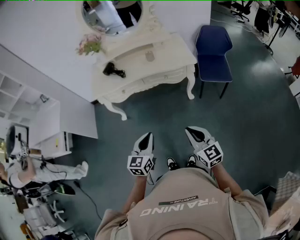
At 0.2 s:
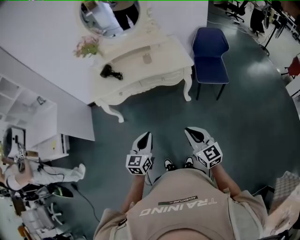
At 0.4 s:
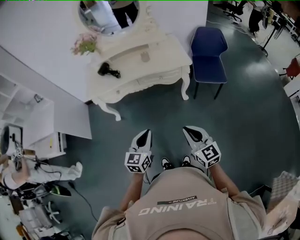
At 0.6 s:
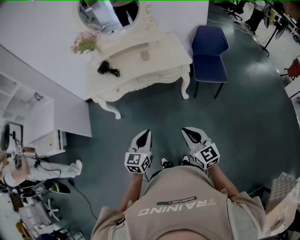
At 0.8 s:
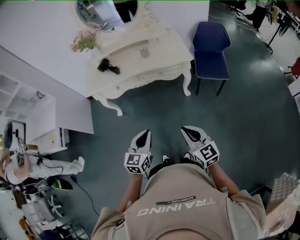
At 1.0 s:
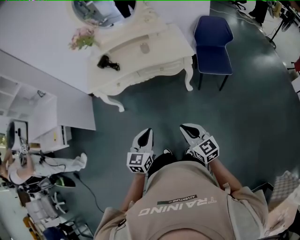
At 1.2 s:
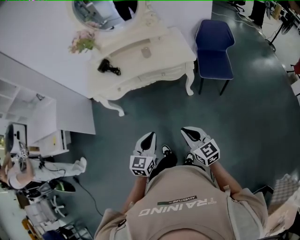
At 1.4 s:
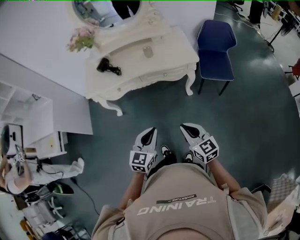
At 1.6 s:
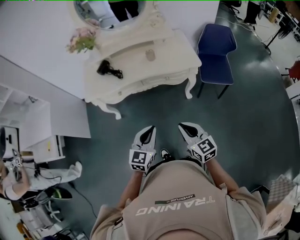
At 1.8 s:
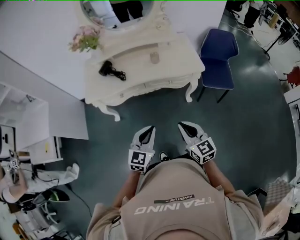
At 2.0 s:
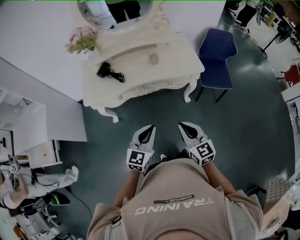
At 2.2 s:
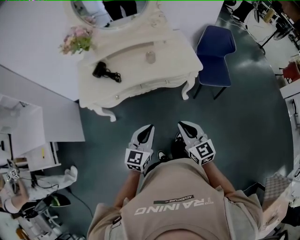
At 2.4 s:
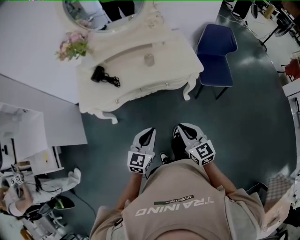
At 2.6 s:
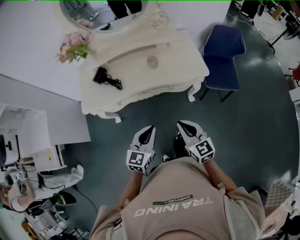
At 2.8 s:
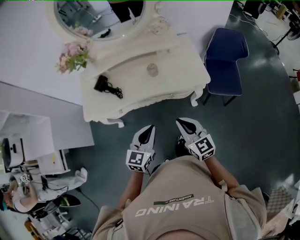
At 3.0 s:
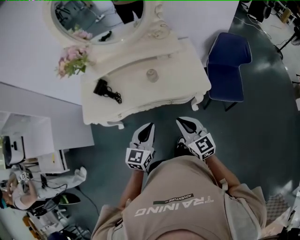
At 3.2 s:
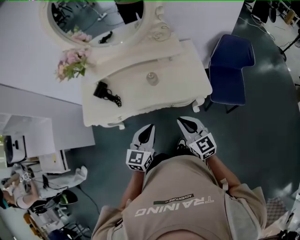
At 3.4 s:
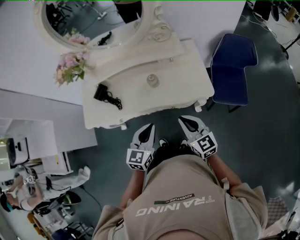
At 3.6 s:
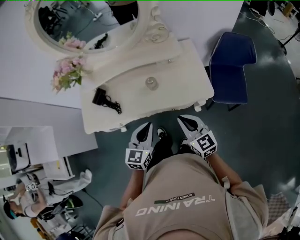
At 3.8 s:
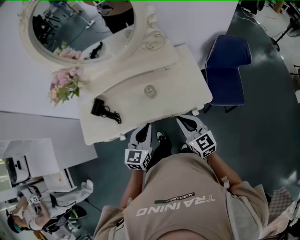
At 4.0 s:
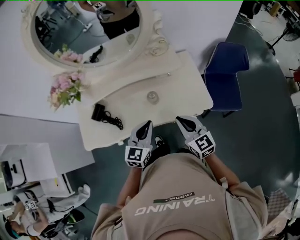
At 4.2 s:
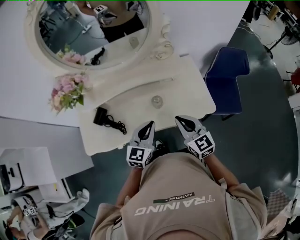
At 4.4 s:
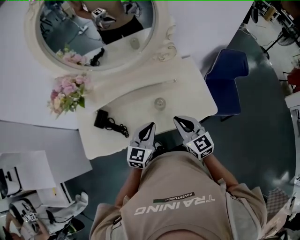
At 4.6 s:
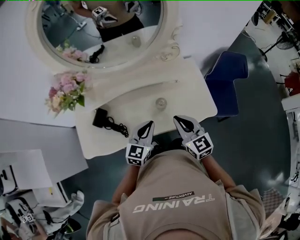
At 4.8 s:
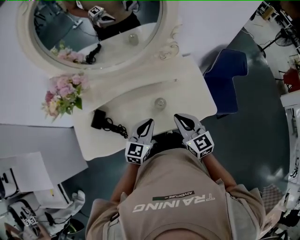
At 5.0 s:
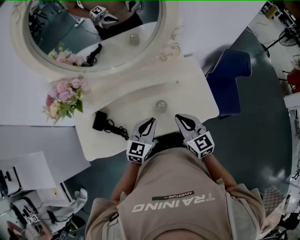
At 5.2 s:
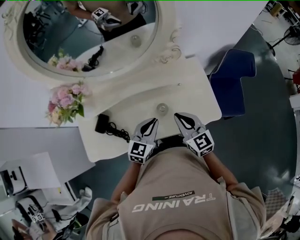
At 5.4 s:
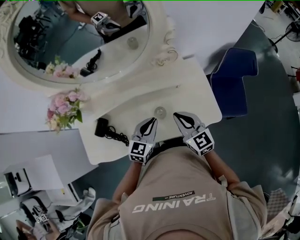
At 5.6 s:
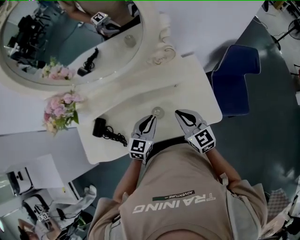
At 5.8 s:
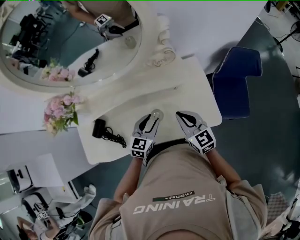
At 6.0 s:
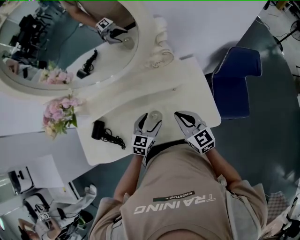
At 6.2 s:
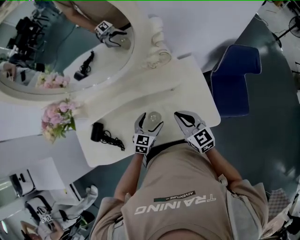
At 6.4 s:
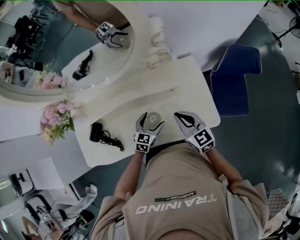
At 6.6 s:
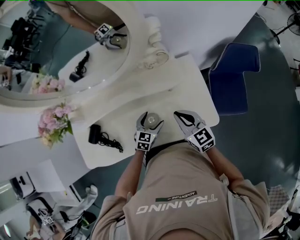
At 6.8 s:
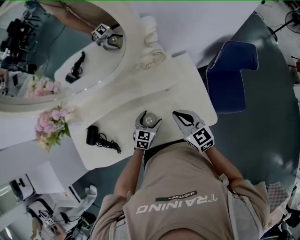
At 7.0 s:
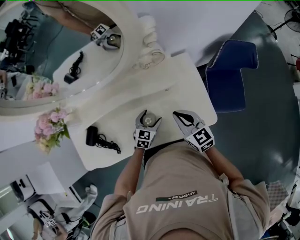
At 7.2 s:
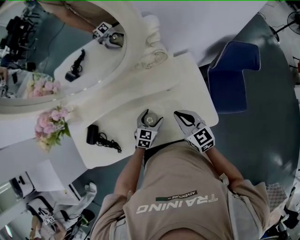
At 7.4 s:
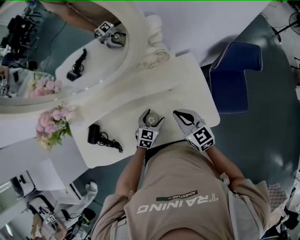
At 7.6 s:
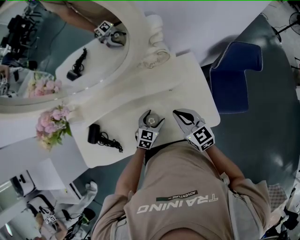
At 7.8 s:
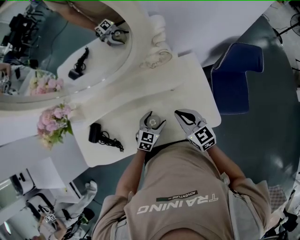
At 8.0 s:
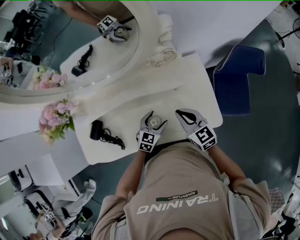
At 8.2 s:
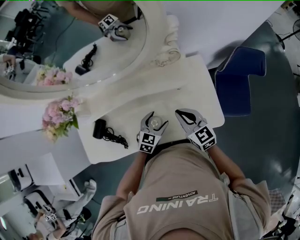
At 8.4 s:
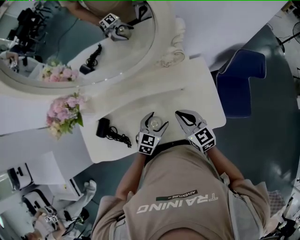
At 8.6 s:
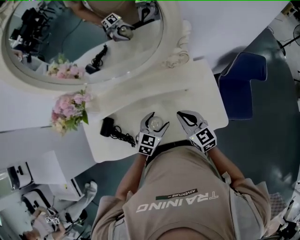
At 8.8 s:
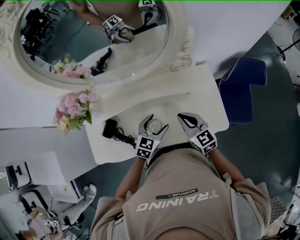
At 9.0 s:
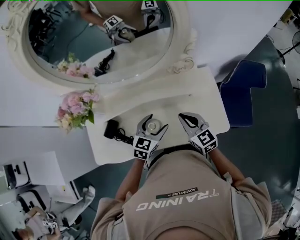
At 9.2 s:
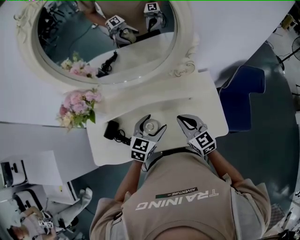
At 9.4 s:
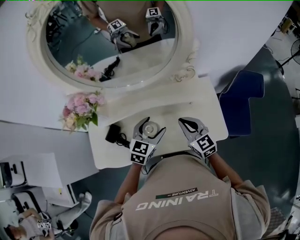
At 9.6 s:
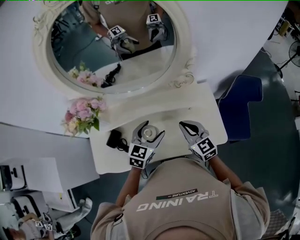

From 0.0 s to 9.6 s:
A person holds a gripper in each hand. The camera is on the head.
From 0.0 s to 1.6 s: Both grippers move forward, about 10 cm.
From 1.6 s to 3.2 s: The two grippers go some 25 cm forward.
From 3.2 s to 4.8 s: The left gripper shifts some 20 cm forward; the right gripper goes roughly 20 cm forward and to the left.
From 4.8 s to 6.4 s: The right gripper is displaced forward, to the right and downward by approximately 15 cm, while the left gripper is displaced downward, forward and to the right by some 20 cm, and opens up.
From 6.4 s to 8.0 s: There are only small adjustments of the grippers.
From 8.0 s to 9.6 s: The left gripper goes some 25 cm upward and to the left, while the right gripper moves upward and to the left, roughly 10 cm.

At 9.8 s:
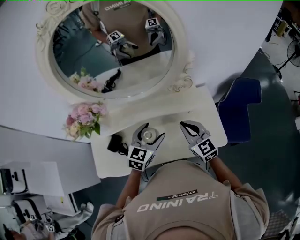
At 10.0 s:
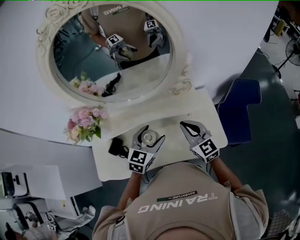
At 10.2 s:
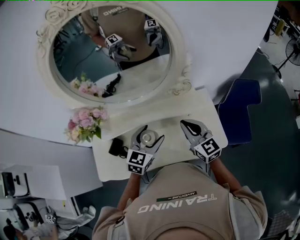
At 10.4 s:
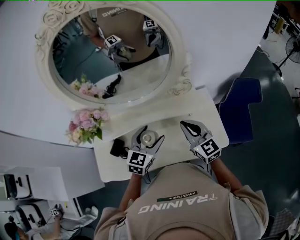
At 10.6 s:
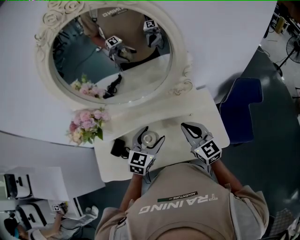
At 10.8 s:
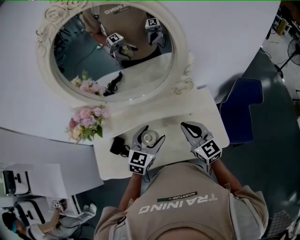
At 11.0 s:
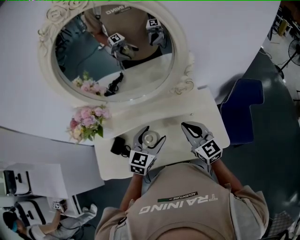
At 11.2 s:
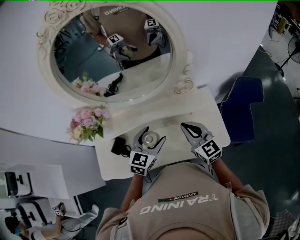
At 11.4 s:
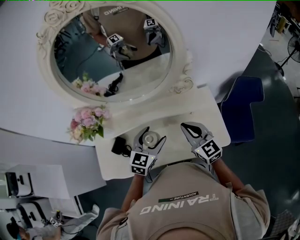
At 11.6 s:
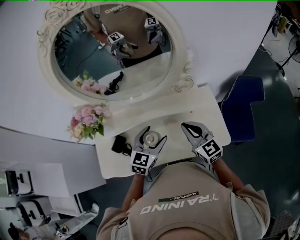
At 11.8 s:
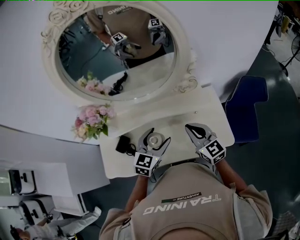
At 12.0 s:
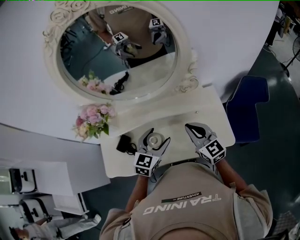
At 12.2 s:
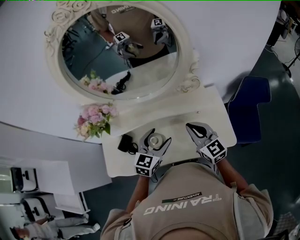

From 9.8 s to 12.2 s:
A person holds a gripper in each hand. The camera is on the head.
From 9.8 s to 12.2 s: The grippers stay close to where they were, moving slightly.

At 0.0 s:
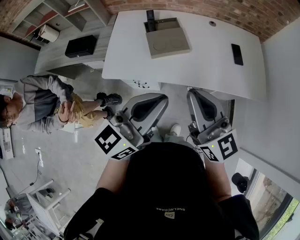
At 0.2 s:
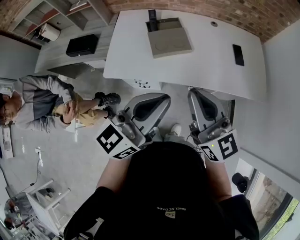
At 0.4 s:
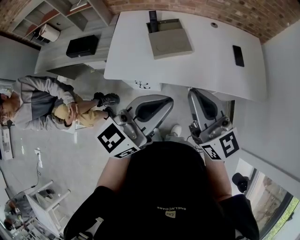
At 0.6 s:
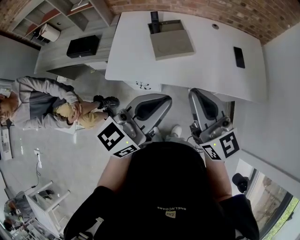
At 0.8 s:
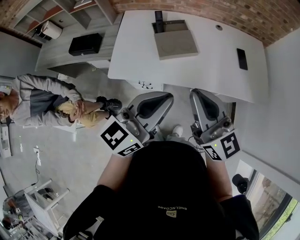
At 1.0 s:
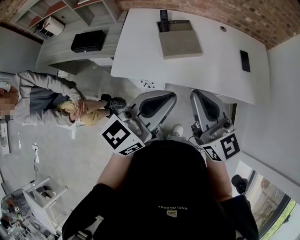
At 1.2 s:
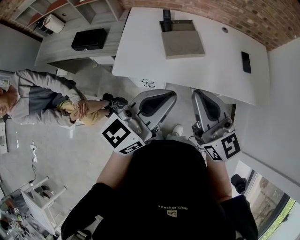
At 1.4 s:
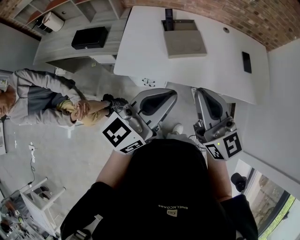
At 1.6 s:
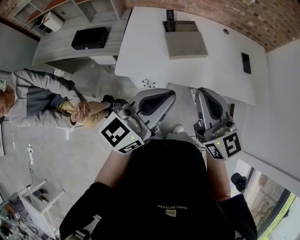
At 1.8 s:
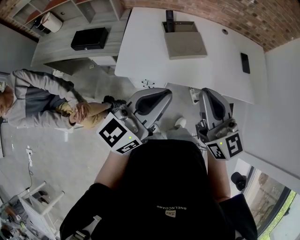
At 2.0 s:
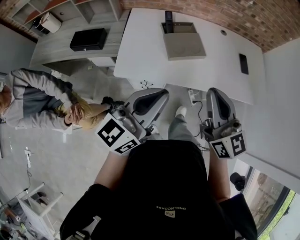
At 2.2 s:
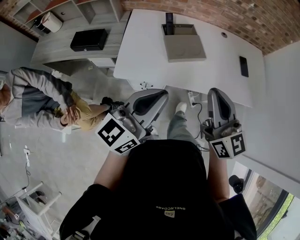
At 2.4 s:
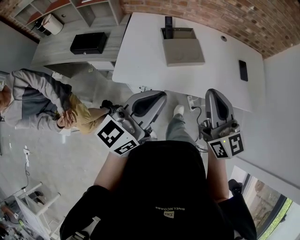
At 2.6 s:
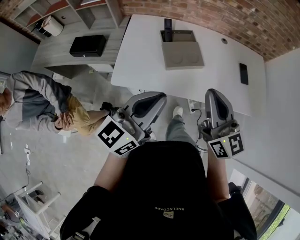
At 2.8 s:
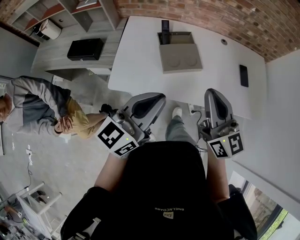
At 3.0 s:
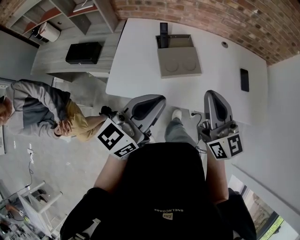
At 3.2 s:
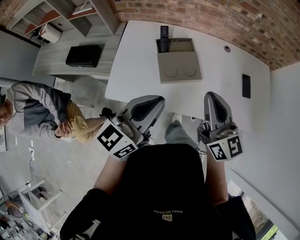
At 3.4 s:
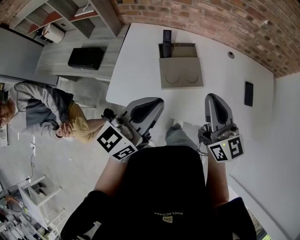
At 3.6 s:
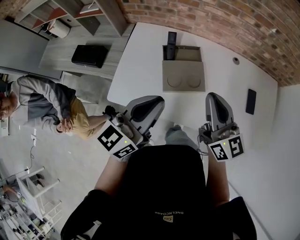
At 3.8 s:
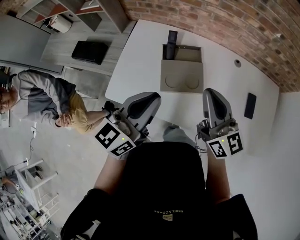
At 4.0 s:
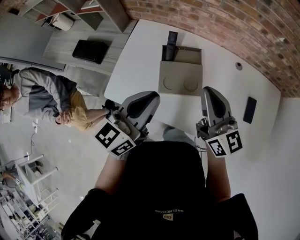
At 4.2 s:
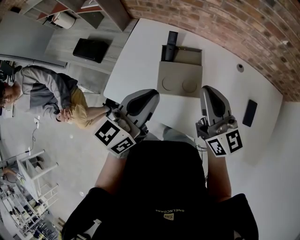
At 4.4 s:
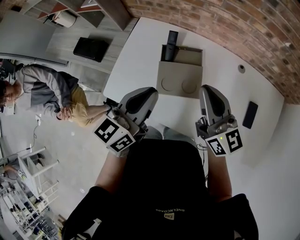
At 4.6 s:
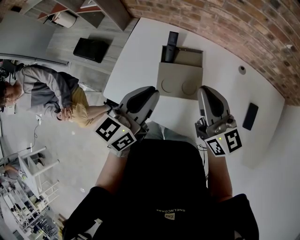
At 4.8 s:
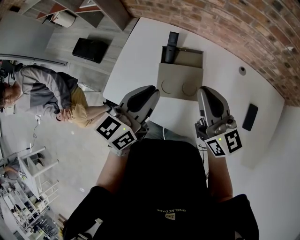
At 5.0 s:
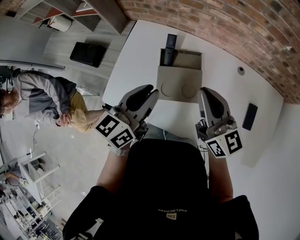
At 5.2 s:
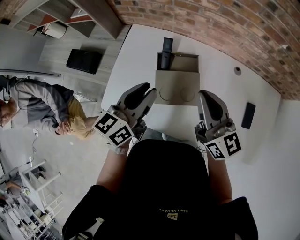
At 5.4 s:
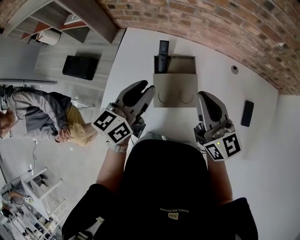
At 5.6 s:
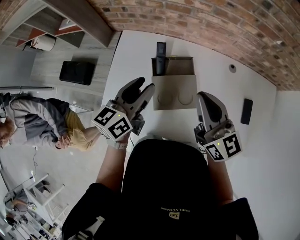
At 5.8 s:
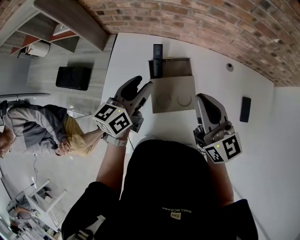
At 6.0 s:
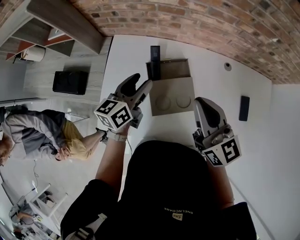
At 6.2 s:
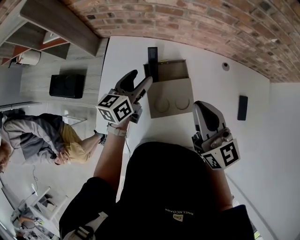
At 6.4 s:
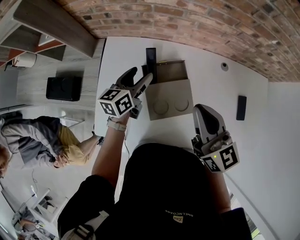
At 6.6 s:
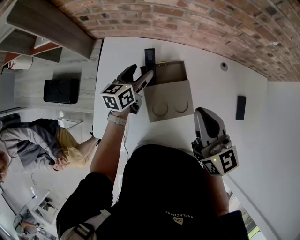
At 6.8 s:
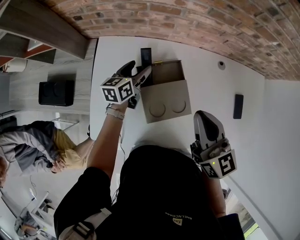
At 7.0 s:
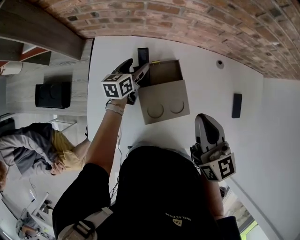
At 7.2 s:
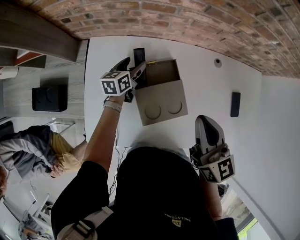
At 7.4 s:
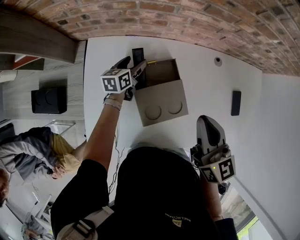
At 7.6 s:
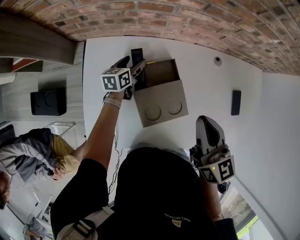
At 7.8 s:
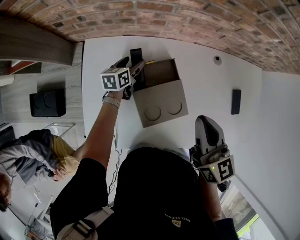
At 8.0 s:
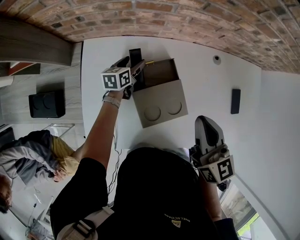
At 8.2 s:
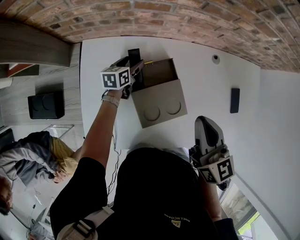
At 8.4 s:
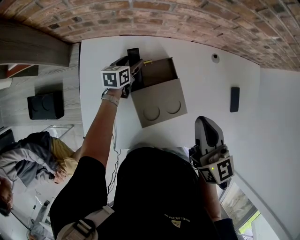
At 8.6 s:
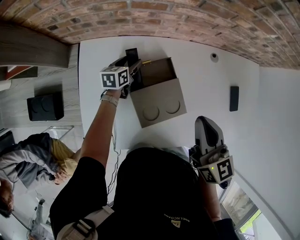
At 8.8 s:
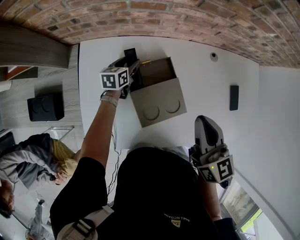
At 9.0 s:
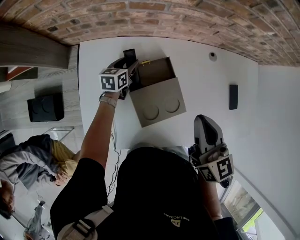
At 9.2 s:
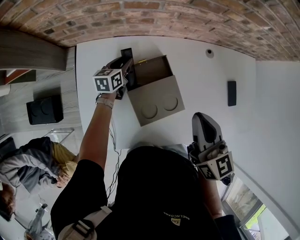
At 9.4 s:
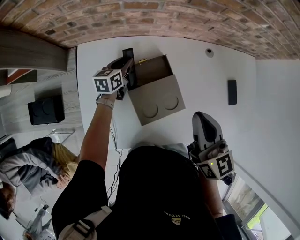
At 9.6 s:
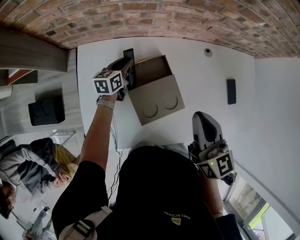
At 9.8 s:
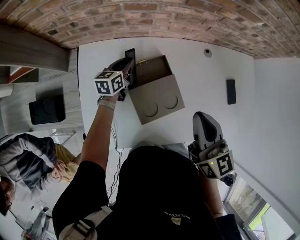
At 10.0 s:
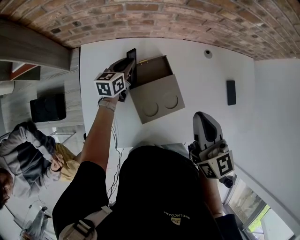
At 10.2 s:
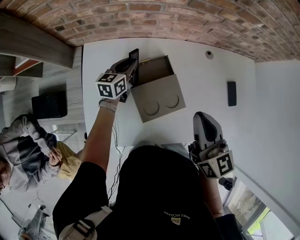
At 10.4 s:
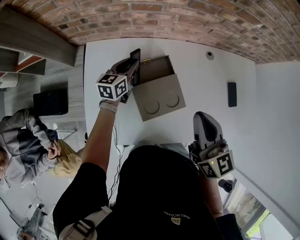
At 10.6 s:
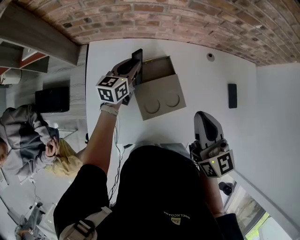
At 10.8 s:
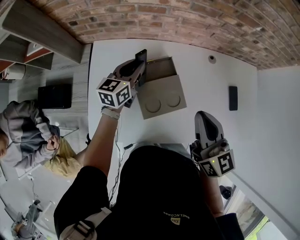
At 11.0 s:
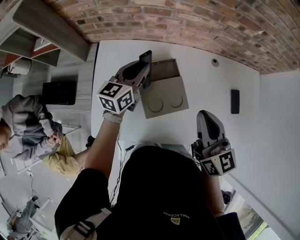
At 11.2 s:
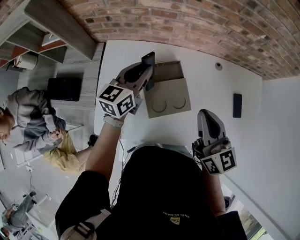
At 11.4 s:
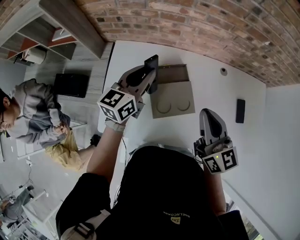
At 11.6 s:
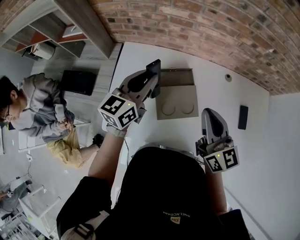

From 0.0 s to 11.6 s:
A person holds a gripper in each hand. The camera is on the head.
From 0.0 s to 1.4 s: The two grippers go roughly 10 cm to the left.
From 1.4 s to 2.8 s: The left gripper travels forward by approximately 5 cm. Meanwhile the right gripper is displaced forward and to the right by about 10 cm.
From 2.8 s to 4.4 s: The two grippers go some 20 cm forward. The right gripper swivels some 20 degrees. The left gripper rotates about 20 degrees.
From 4.4 s to 5.8 s: The left gripper goes approximately 15 cm forward and downward, and opens up. Meanwhile the right gripper ends up about 5 cm from where it was.
From 5.8 s to 7.2 s: The left gripper goes roughly 25 cm downward and forward, and opens its fingers.
From 7.2 s to 8.8 s: The left gripper shifts by roughly 5 cm.
From 8.8 s to 10.2 s: The left gripper shifts roughly 10 cm upward, and closes up.
From 10.2 s to 11.6 s: The left gripper shifts roughly 25 cm upward and backward, and changes its angle by roughly 20 degrees.
